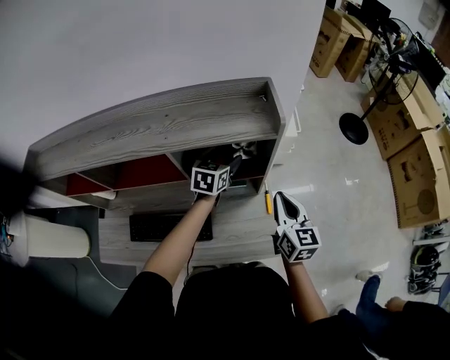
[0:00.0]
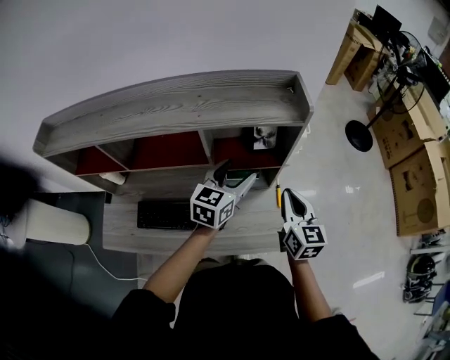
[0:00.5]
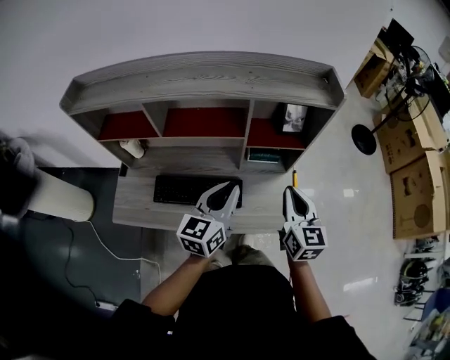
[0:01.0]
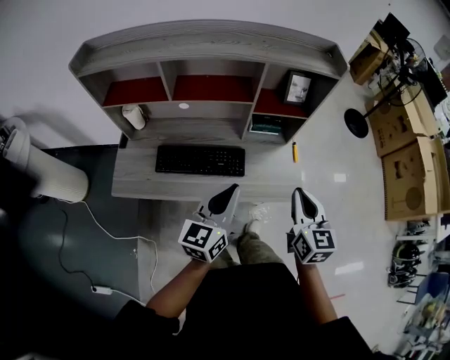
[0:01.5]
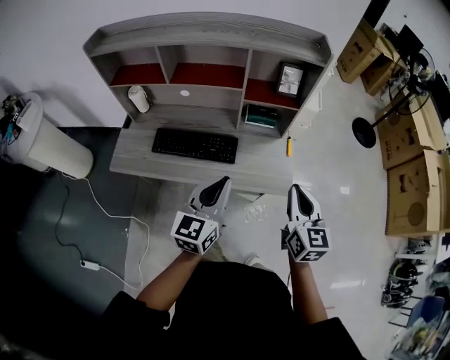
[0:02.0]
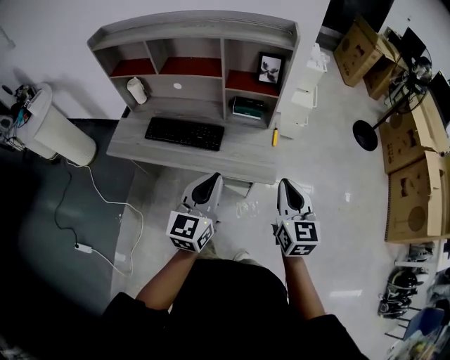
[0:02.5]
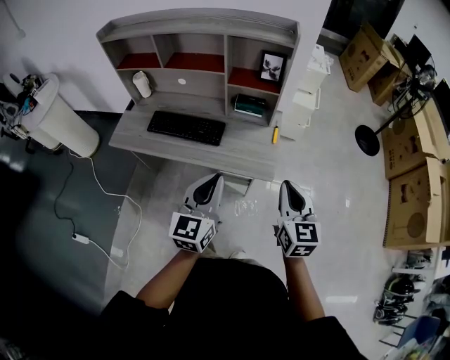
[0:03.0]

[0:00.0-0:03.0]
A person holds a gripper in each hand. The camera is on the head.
0:00.0 to 0:01.5: The right gripper travels backward and to the left by some 30 cm, while the left gripper goes about 40 cm backward, changes its angle by approximately 30 degrees, and closes.
0:01.5 to 0:03.0: The two grippers go some 25 cm to the right and backward. The left gripper rotates some 20 degrees.

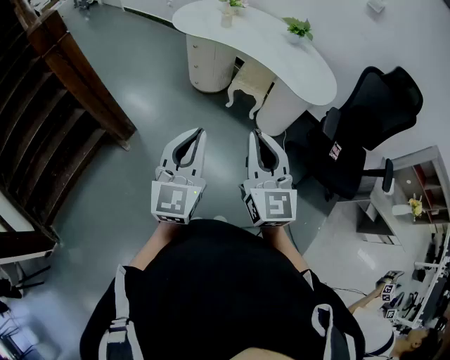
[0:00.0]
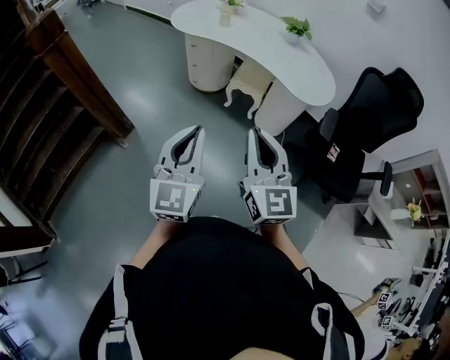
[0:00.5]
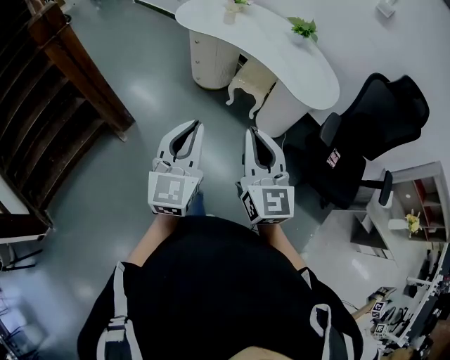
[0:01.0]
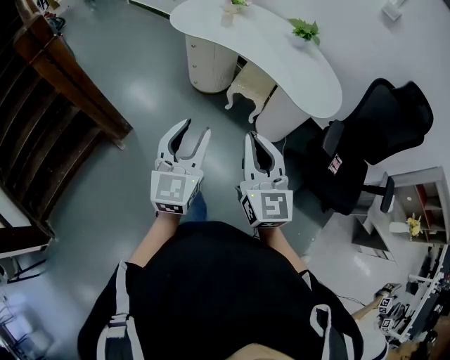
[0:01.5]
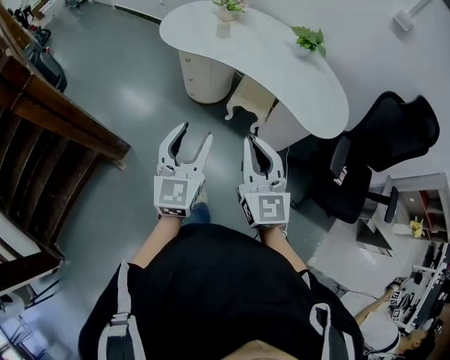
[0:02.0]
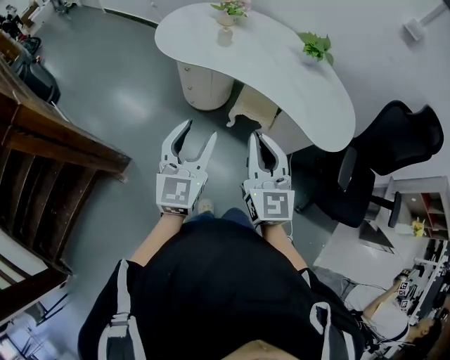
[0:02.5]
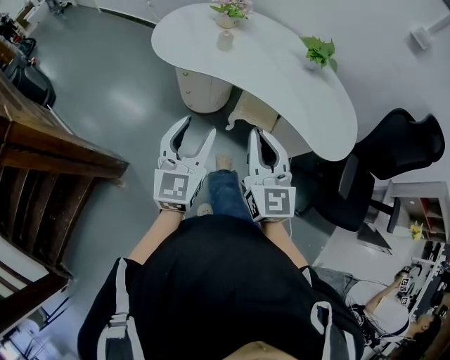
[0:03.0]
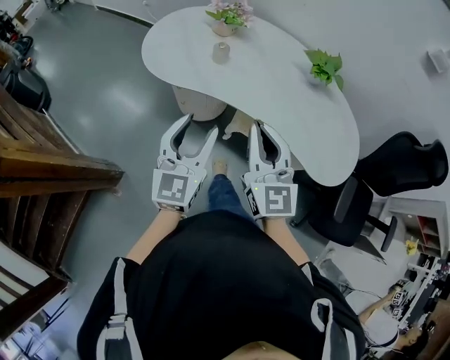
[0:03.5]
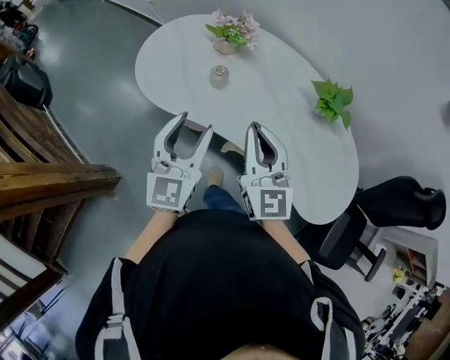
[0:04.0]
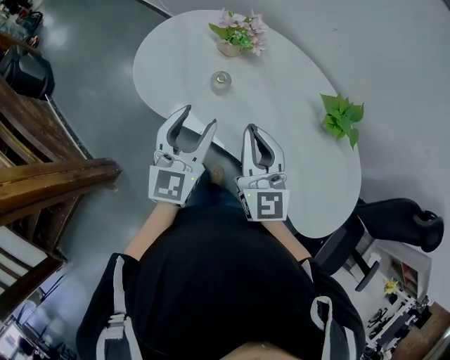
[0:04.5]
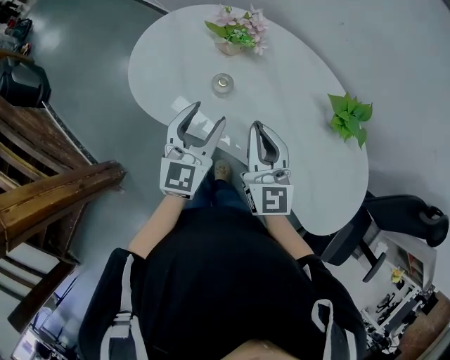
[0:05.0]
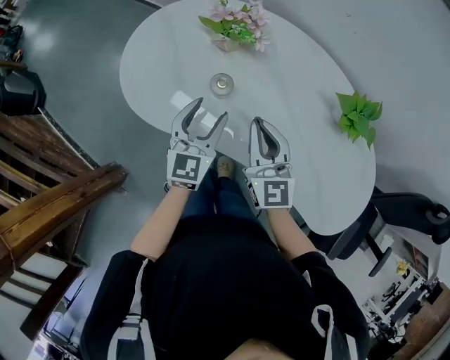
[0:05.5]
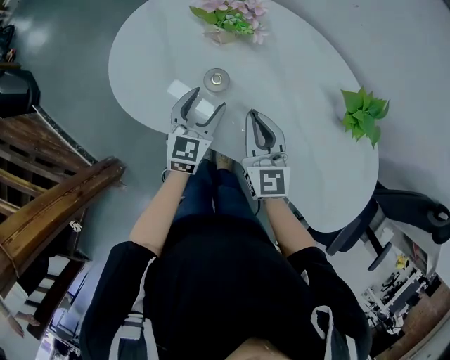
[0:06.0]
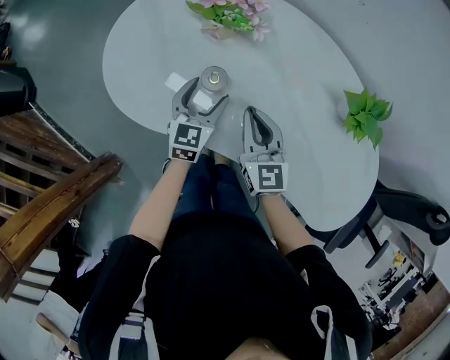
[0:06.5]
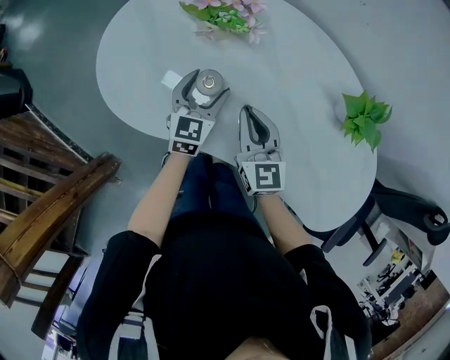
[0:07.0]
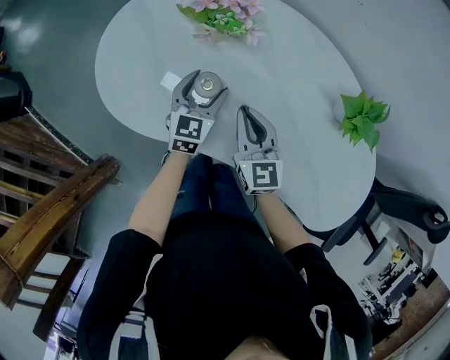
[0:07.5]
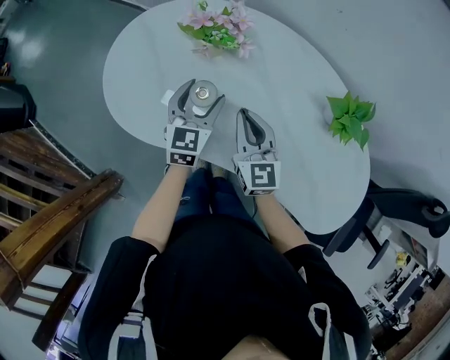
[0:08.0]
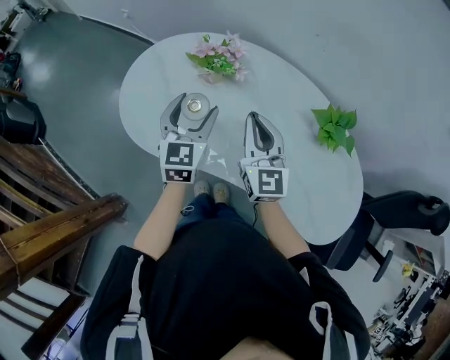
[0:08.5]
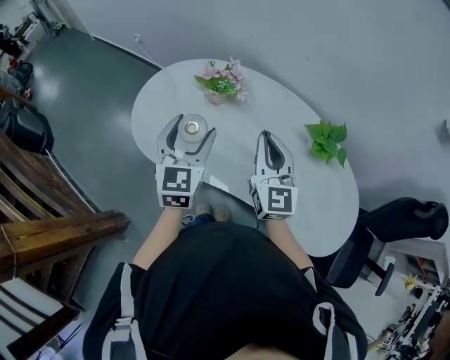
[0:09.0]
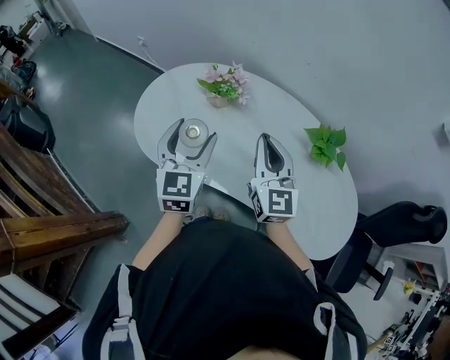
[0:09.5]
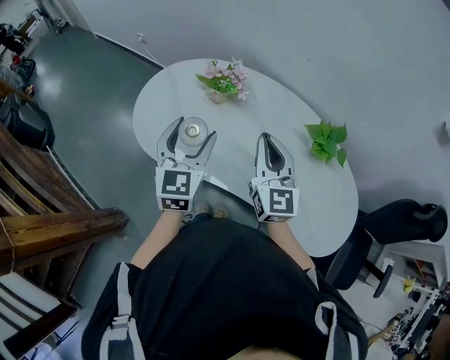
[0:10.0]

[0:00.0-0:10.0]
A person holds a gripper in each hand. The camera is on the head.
0:00.0 to 0:02.0: The two grippers go about 25 cm forward. The left gripper opens.
0:02.0 to 0:04.0: Both grippers are carried forward, approximately 40 cm.
0:04.0 to 0:06.0: Both grippers travel together downward and forward, about 25 cm.
0:06.0 to 0:08.0: The left gripper heads forward, covering some 5 cm.
0:08.0 to 0:10.0: The right gripper is displaced upward by roughly 15 cm; the left gripper moves upward and backward, approximately 20 cm.

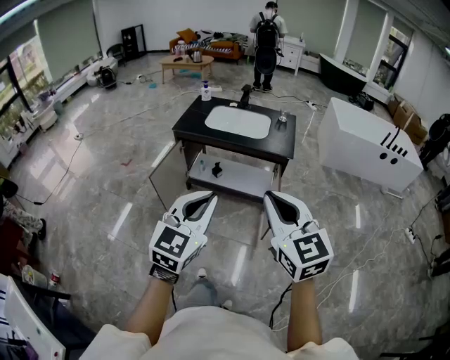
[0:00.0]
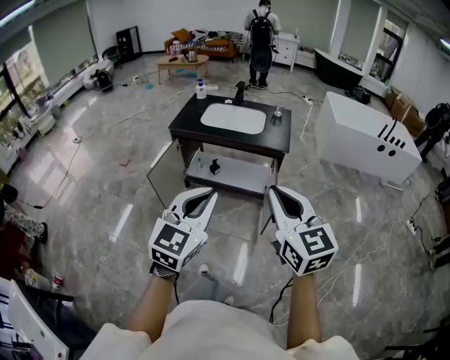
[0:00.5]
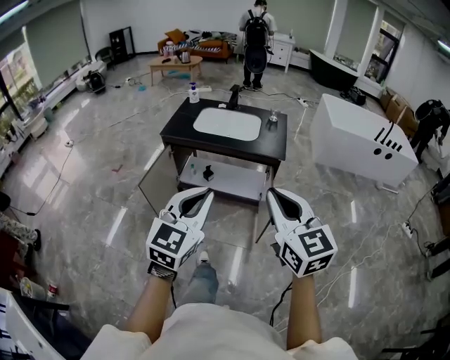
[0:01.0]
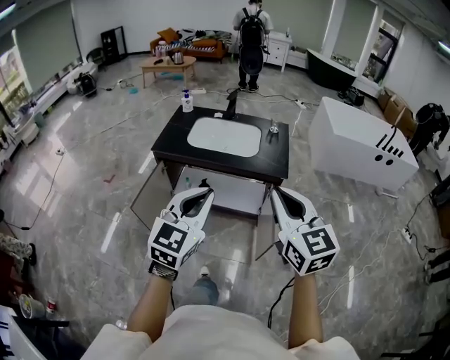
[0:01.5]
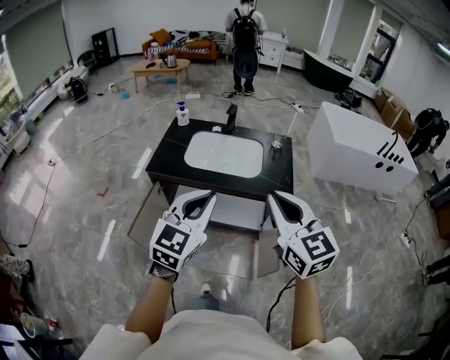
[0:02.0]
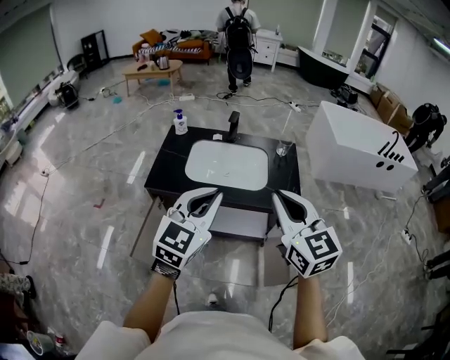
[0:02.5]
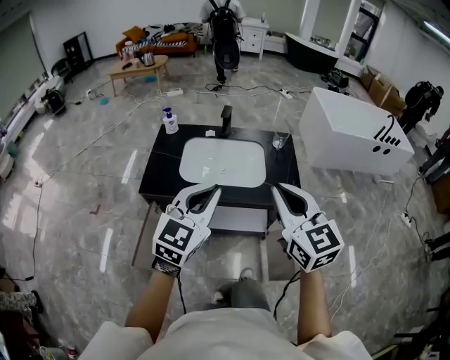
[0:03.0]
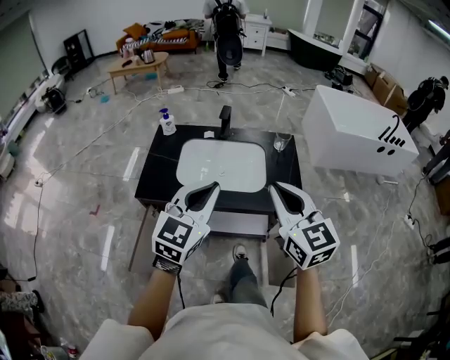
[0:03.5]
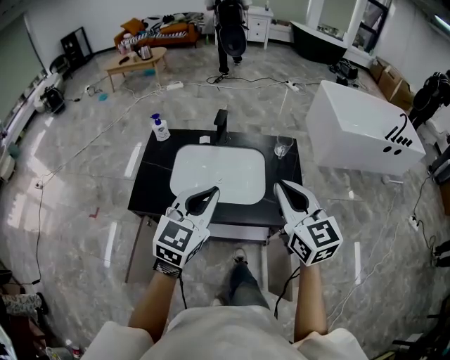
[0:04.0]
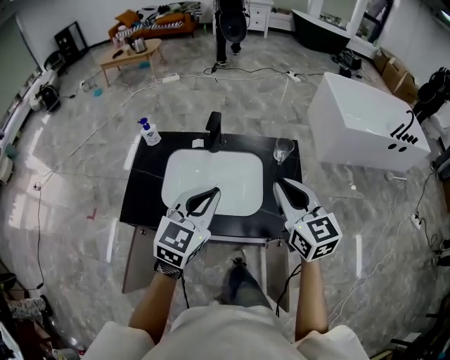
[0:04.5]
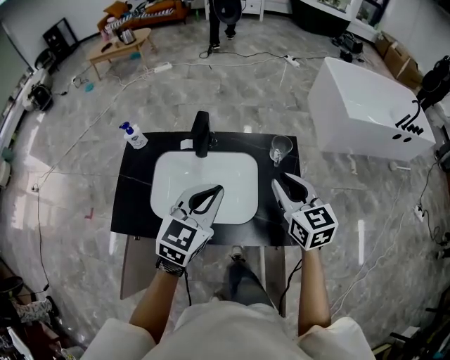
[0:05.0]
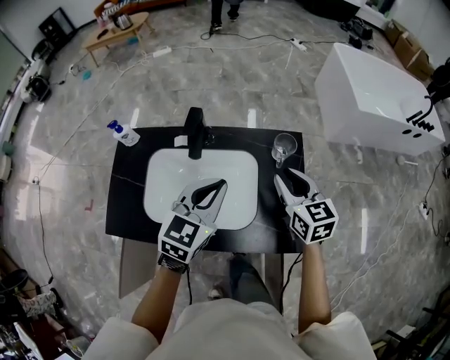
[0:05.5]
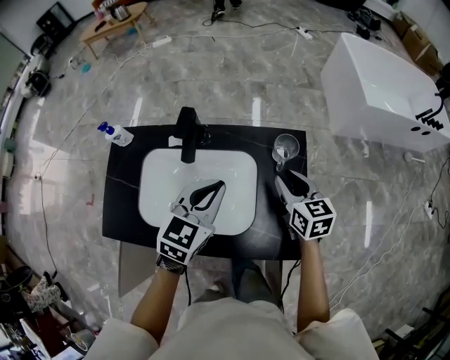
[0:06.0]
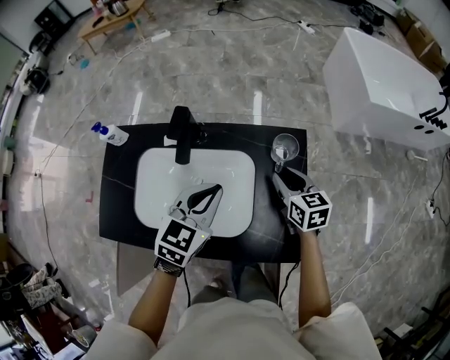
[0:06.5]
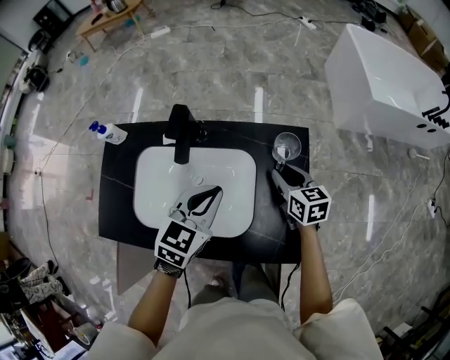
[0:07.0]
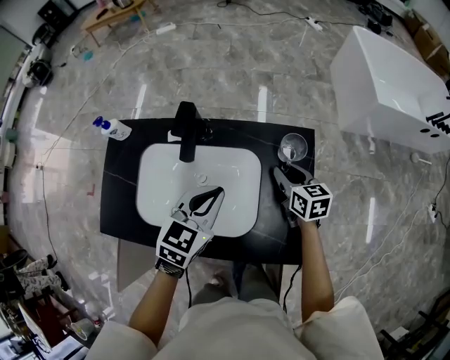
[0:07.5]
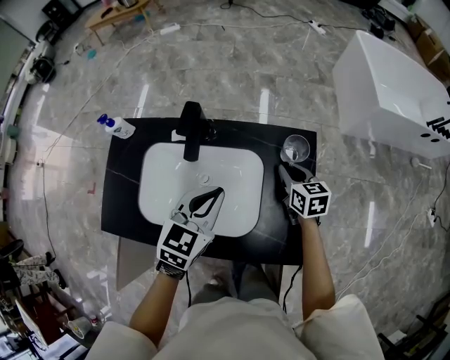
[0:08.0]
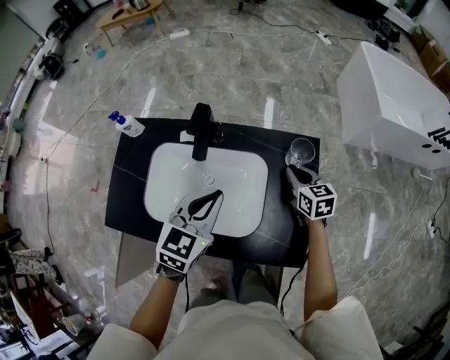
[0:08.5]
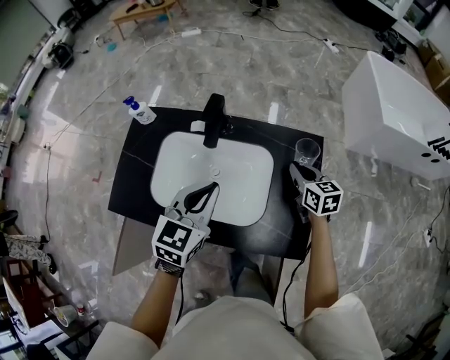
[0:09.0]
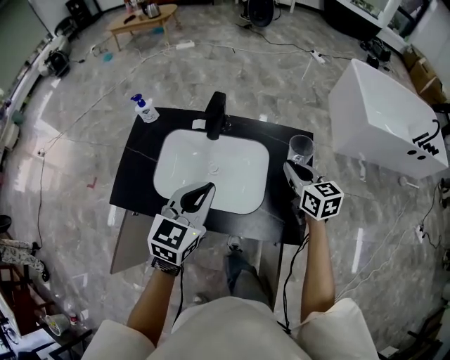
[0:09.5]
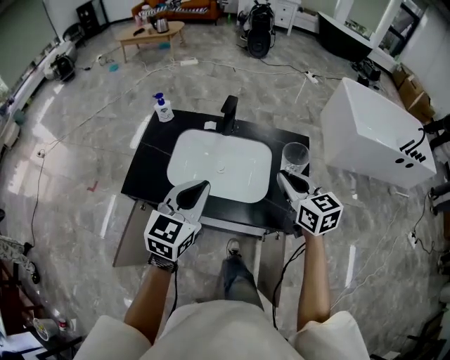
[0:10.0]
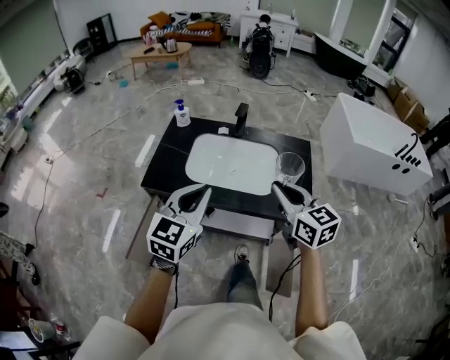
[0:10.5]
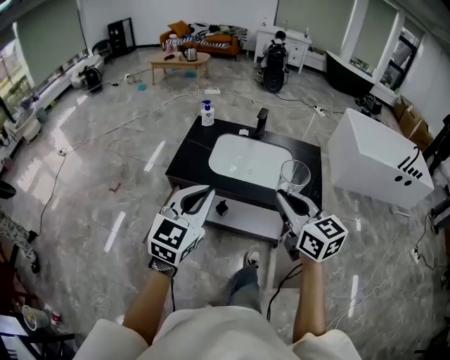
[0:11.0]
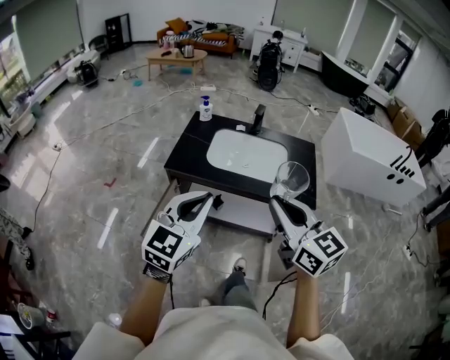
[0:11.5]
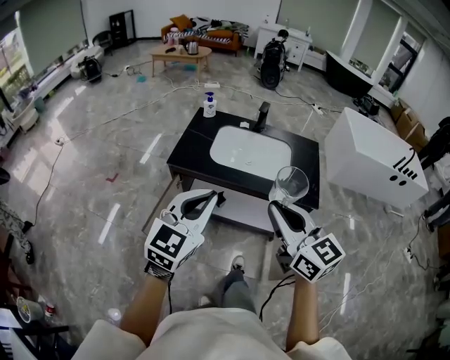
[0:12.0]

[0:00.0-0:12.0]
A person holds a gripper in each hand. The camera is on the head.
0:00.0 to 0:02.0: Both grippers move forward, roughly 35 cm.
0:02.0 to 0:04.0: Both grippers move forward, approximately 30 cm.
0:04.0 to 0:06.0: Both grippers move forward and downward, roughly 35 cm. The right gripper rotates about 30 degrees, and opens.
0:06.0 to 0:08.0: The right gripper is displaced downward and forward by about 10 cm.
0:08.0 to 0:10.0: The right gripper travels backward, upward and to the left by approximately 35 cm, and rotates about 20 degrees, while the left gripper travels backward, to the left and upward by approximately 30 cm.
0:10.0 to 0:12.0: The grippers both shift backward and to the left by some 40 cm.

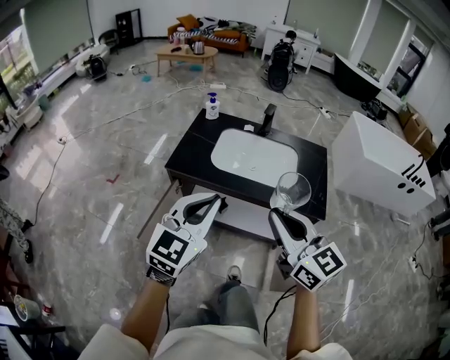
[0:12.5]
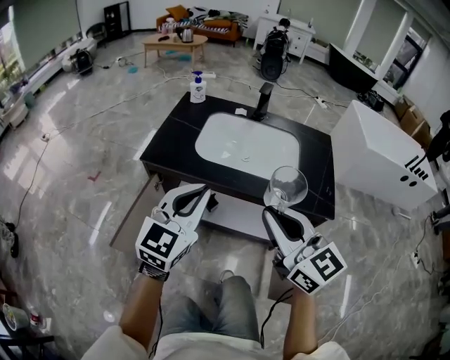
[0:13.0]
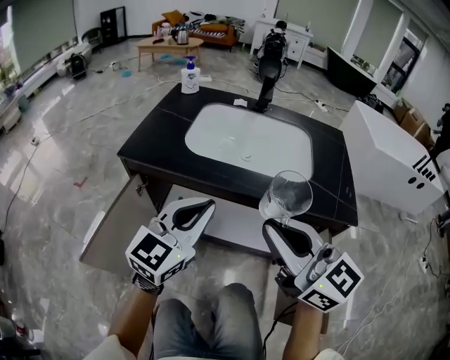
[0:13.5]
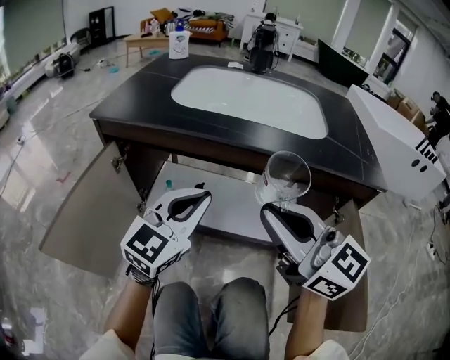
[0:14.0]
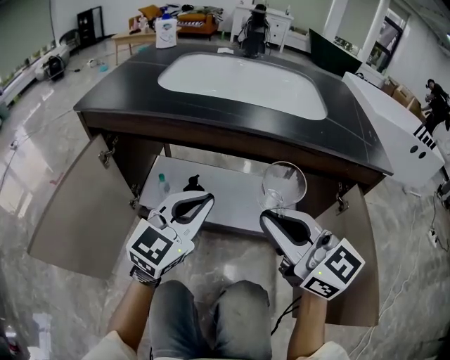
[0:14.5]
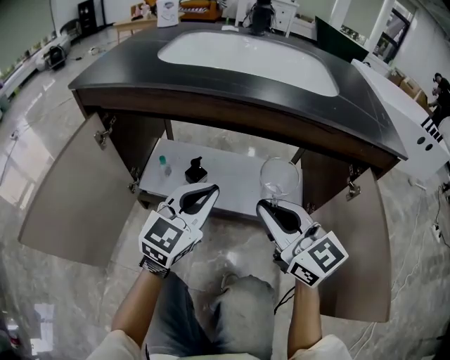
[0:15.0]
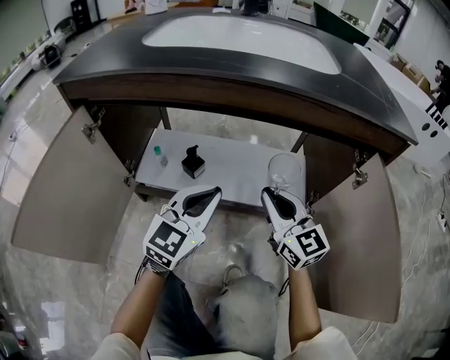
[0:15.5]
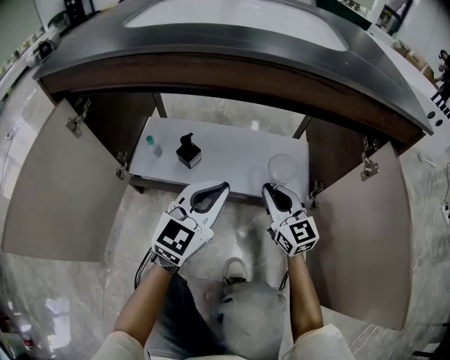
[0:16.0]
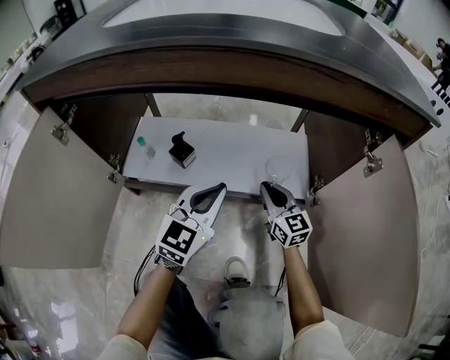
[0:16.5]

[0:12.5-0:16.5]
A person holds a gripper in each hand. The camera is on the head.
0:12.5 to 0:14.5: Both grippers travel together downward, about 50 cm.
0:14.5 to 0:16.5: The right gripper heads downward, covering some 35 cm, and changes its angle by some 30 degrees. Meanwhile the left gripper goes roughly 20 cm downward.
